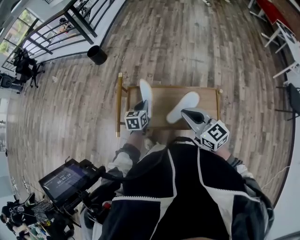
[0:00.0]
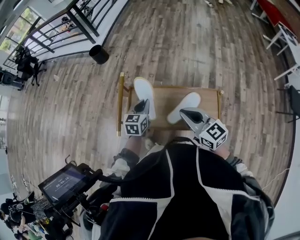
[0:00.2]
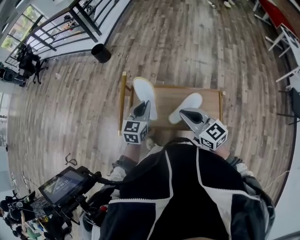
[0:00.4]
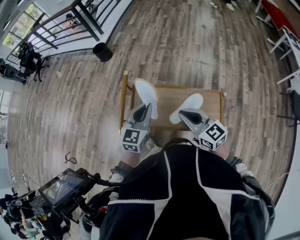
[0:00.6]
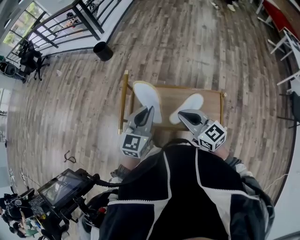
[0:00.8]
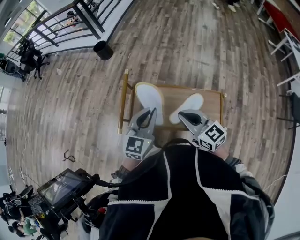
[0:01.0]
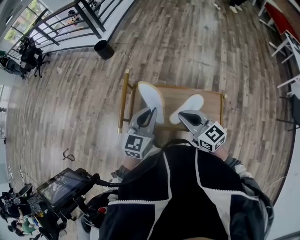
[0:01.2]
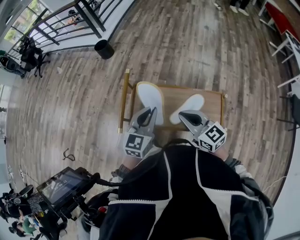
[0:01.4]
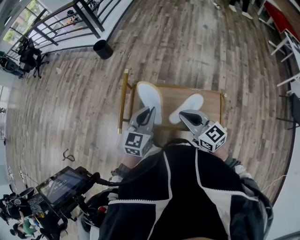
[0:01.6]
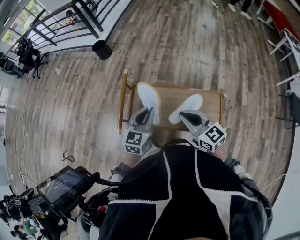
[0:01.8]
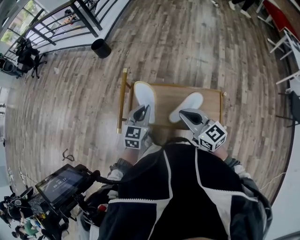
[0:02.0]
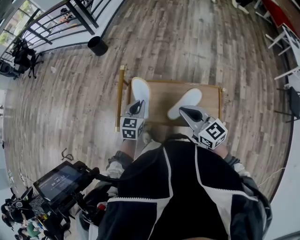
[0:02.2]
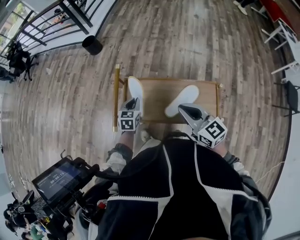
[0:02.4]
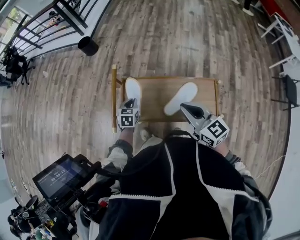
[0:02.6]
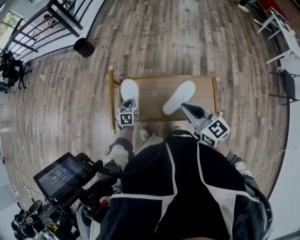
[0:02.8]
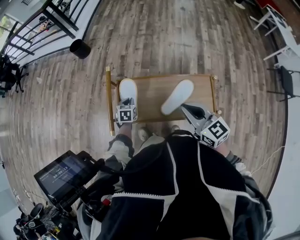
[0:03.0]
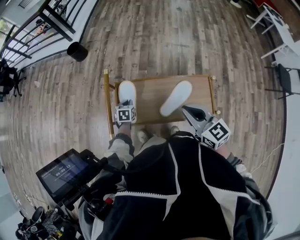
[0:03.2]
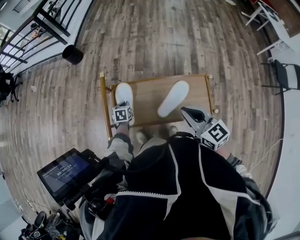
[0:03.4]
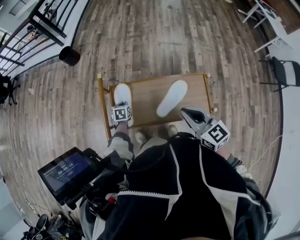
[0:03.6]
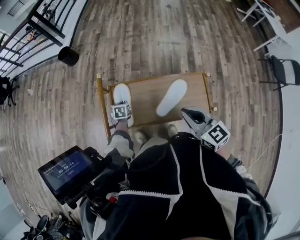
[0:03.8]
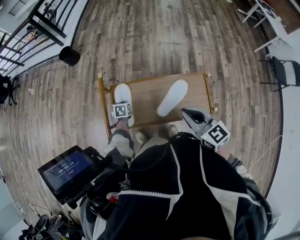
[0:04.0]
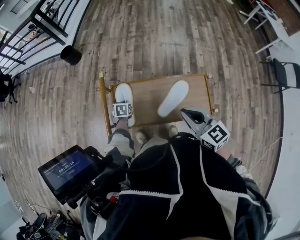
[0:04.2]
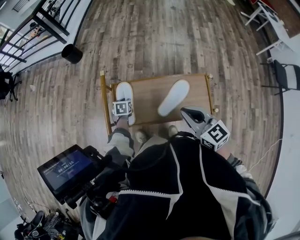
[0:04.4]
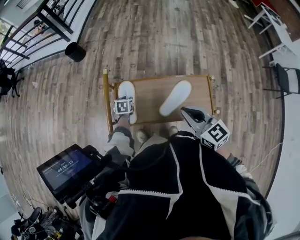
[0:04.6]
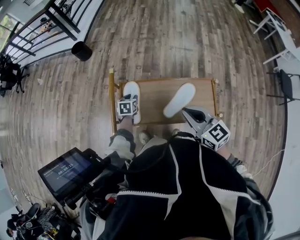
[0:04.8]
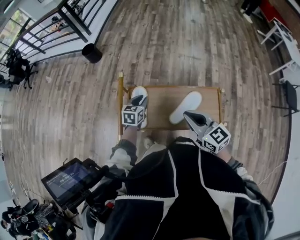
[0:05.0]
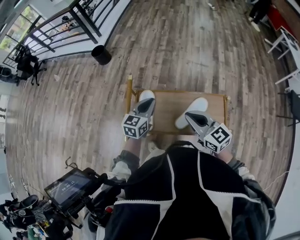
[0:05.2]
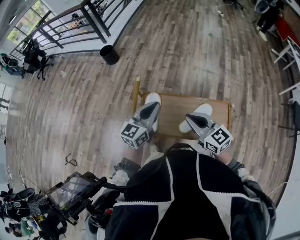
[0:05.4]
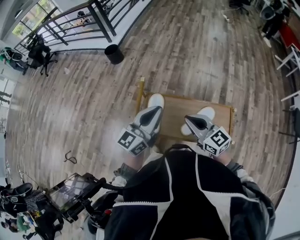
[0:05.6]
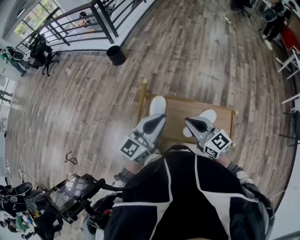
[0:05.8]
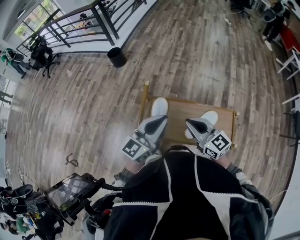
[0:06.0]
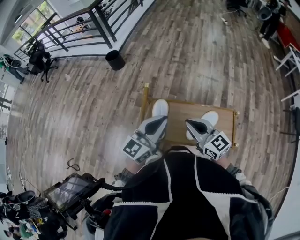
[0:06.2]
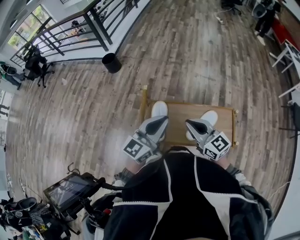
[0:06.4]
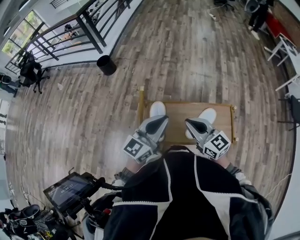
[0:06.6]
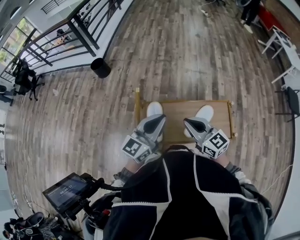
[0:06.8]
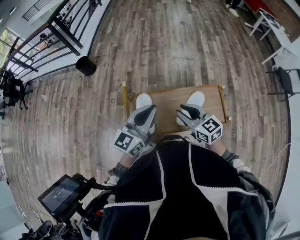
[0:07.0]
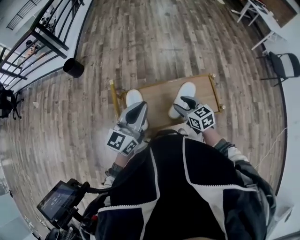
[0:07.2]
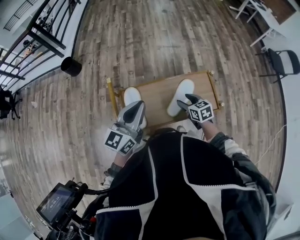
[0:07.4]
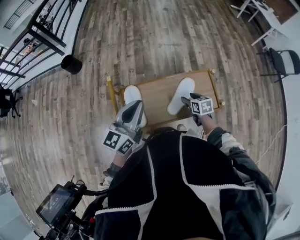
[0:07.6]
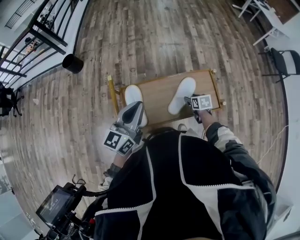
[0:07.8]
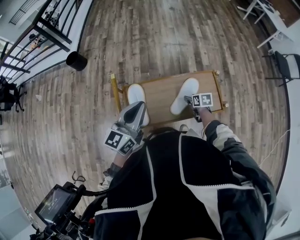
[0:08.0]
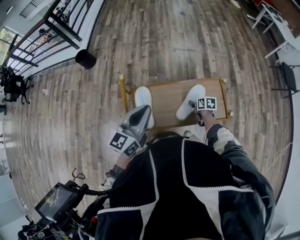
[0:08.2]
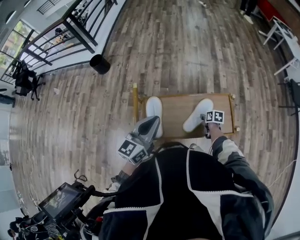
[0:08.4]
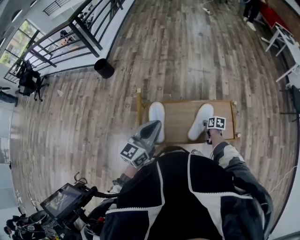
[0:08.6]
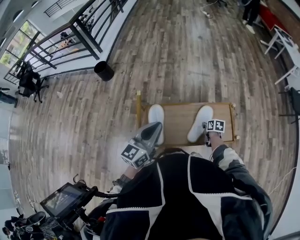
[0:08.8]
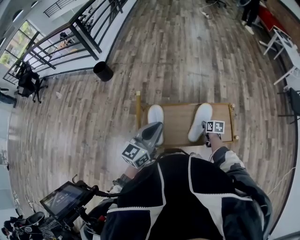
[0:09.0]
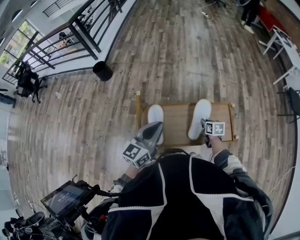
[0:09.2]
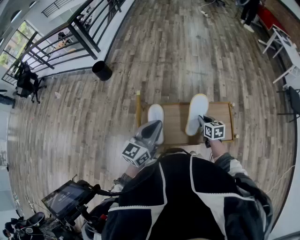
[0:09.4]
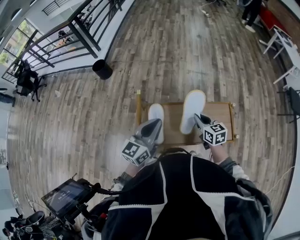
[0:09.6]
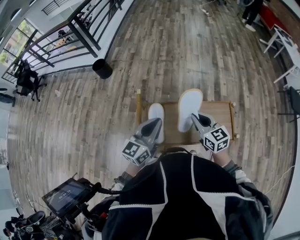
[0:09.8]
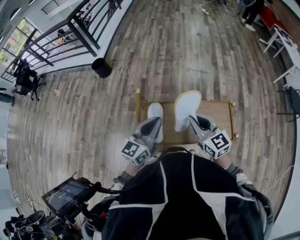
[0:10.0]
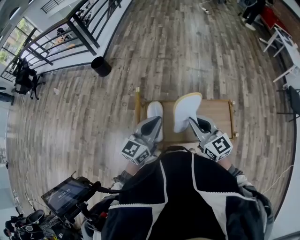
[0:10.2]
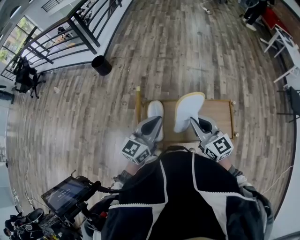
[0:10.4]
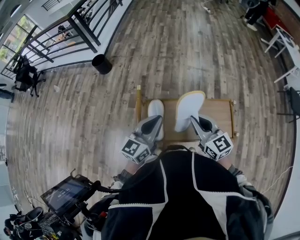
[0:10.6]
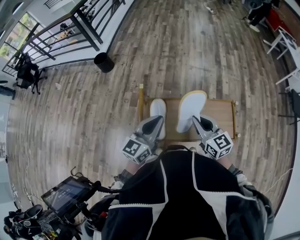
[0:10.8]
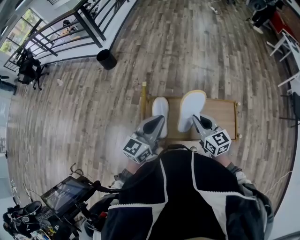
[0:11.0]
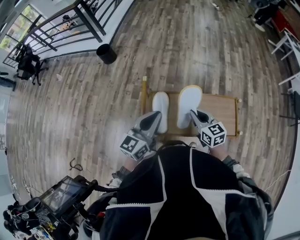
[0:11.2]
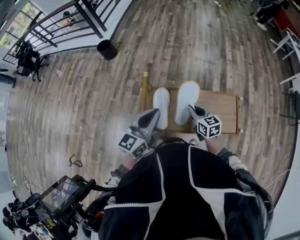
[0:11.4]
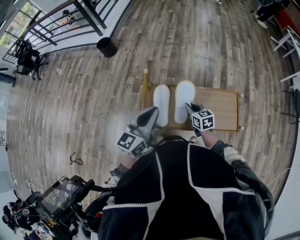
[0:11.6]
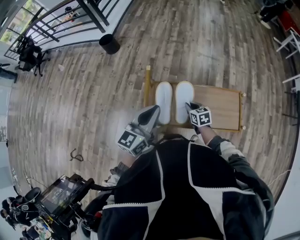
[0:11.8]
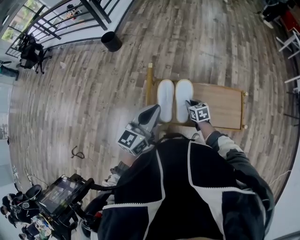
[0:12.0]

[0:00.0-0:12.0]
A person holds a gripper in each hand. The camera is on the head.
0:00.0 to 0:01.6: The left gripper heads upward and backward, covering about 15 cm, and changes its angle by roughly 30 degrees.
0:01.6 to 0:03.0: The left gripper moves downward and forward, approximately 30 cm, and tips its fingers downward by roughly 40 degrees. The right gripper shifts by roughly 5 cm.
0:03.0 to 0:04.4: The left gripper opens up.
0:04.4 to 0:06.0: The left gripper is displaced upward by roughly 40 cm, points its fingers some 70 degrees further upward, and closes up. The right gripper shifts some 10 cm to the left and forward.
0:06.0 to 0:07.6: The right gripper shifts about 30 cm downward and to the right, tips its fingers downward by about 40 degrees, and opens up. Meanwhile the left gripper changes place by some 5 cm.
0:07.6 to 0:09.0: The right gripper travels downward by roughly 5 cm, and closes.
0:09.0 to 0:10.4: The right gripper is displaced upward and to the left by some 35 cm, and tilts its fingers some 40 degrees upward.
0:10.4 to 0:12.0: The right gripper is displaced downward by roughly 30 cm, and angles its fingers downward, by roughly 40 degrees, while the left gripper travels to the left by about 5 cm.

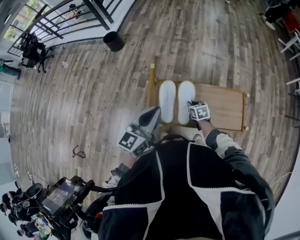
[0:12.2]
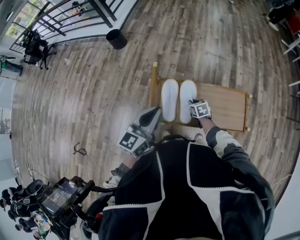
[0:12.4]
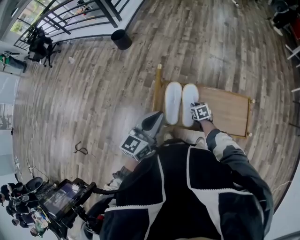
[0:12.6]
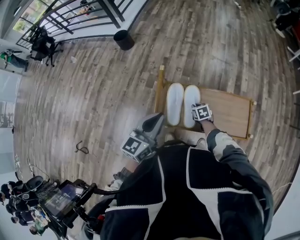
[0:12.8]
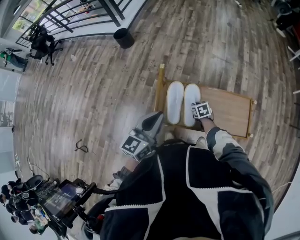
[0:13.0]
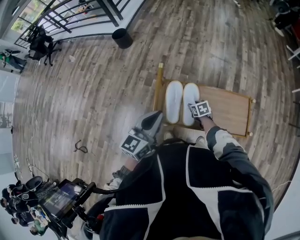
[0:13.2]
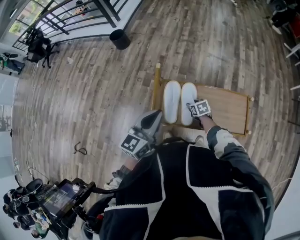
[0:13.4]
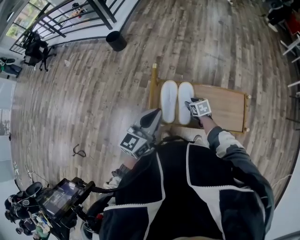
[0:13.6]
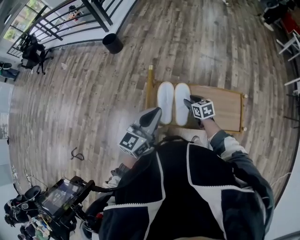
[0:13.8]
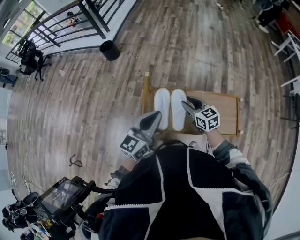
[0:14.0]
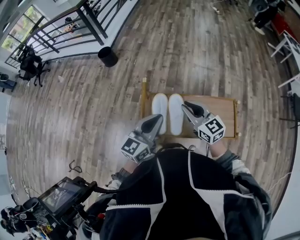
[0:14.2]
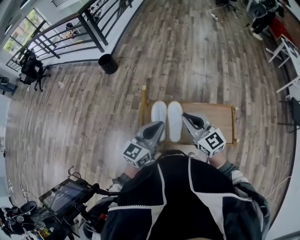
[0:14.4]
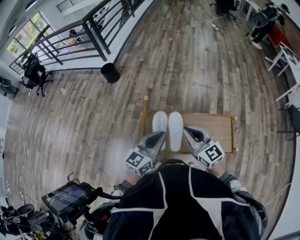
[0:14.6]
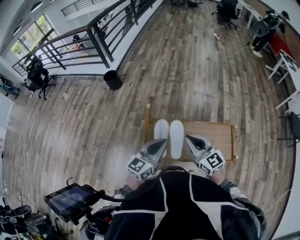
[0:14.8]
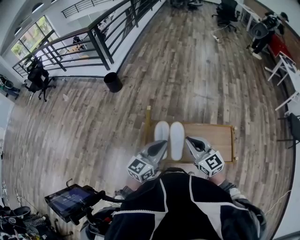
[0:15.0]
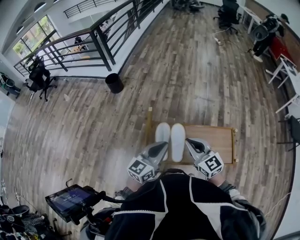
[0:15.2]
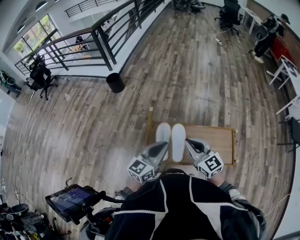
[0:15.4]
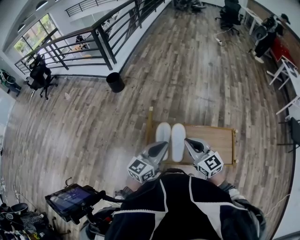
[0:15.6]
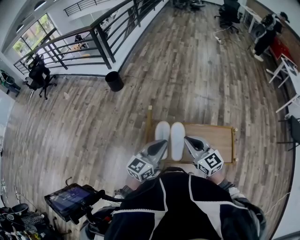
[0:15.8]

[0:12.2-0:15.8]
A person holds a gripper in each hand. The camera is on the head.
0:12.2 to 0:14.0: The right gripper is displaced upward by about 15 cm, changes its angle by roughly 30 degrees, and opens its fingers.
0:14.0 to 0:15.8: The right gripper shifts about 15 cm upward and backward, changes its angle by some 20 degrees, and closes.

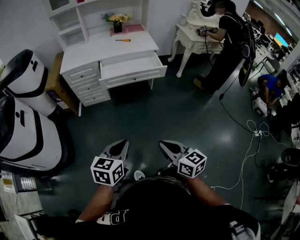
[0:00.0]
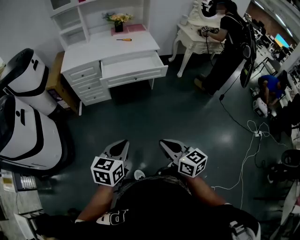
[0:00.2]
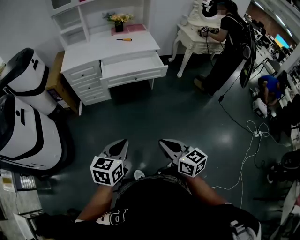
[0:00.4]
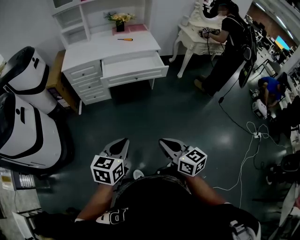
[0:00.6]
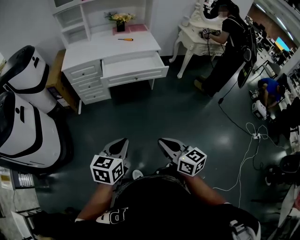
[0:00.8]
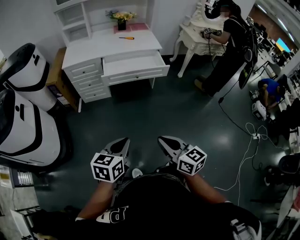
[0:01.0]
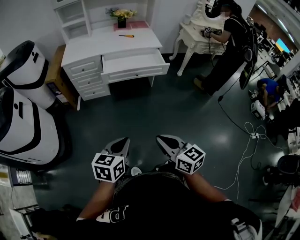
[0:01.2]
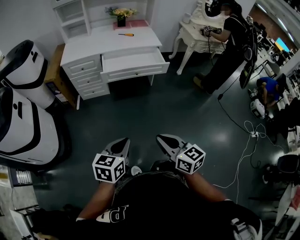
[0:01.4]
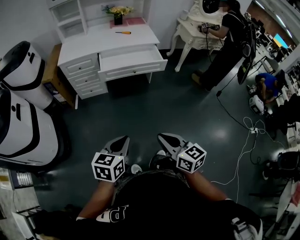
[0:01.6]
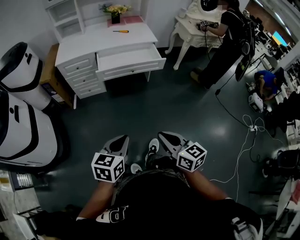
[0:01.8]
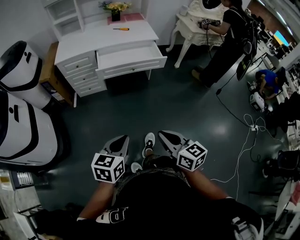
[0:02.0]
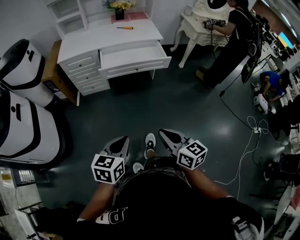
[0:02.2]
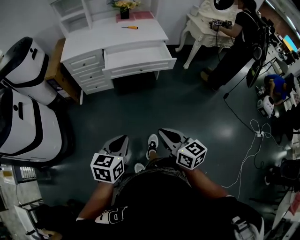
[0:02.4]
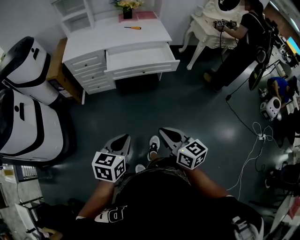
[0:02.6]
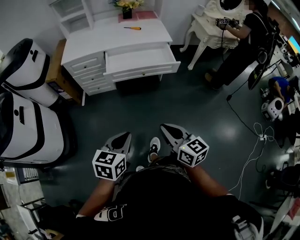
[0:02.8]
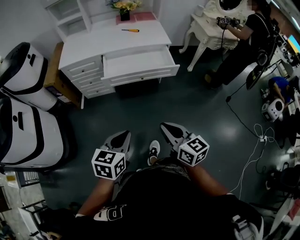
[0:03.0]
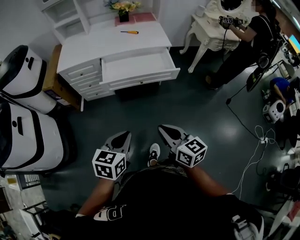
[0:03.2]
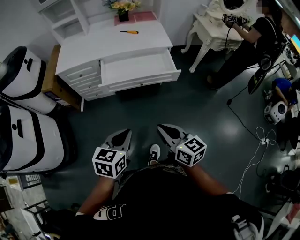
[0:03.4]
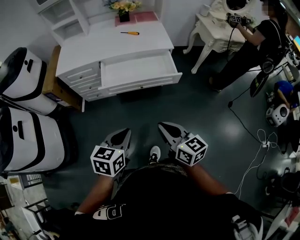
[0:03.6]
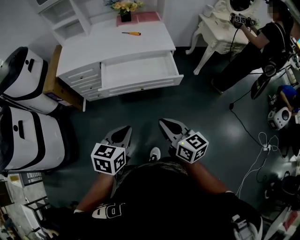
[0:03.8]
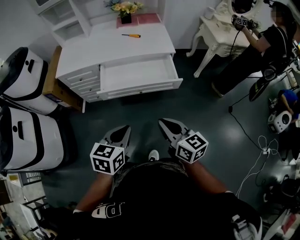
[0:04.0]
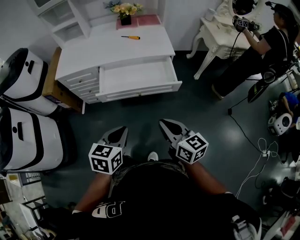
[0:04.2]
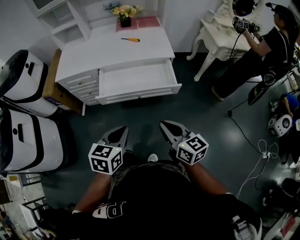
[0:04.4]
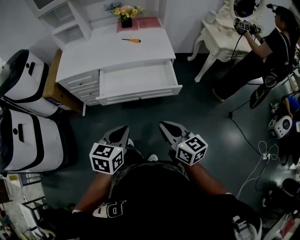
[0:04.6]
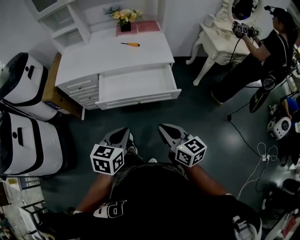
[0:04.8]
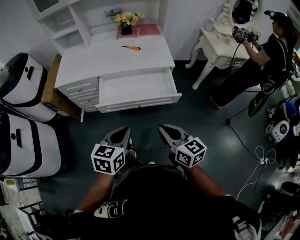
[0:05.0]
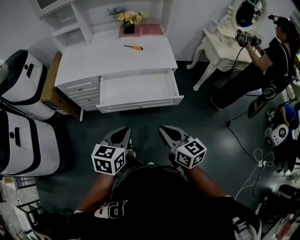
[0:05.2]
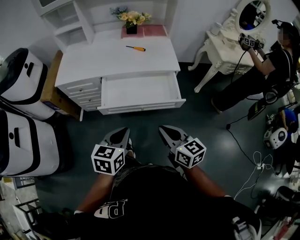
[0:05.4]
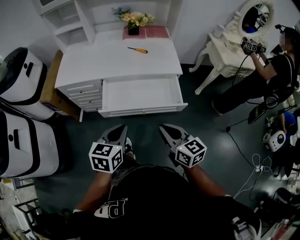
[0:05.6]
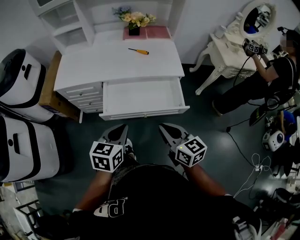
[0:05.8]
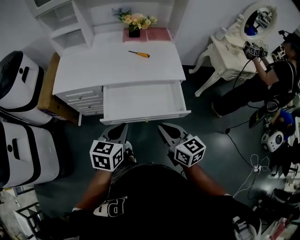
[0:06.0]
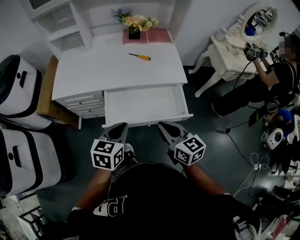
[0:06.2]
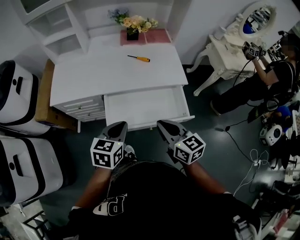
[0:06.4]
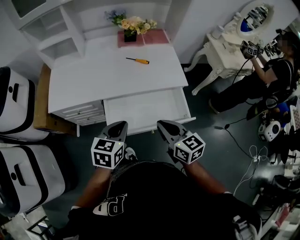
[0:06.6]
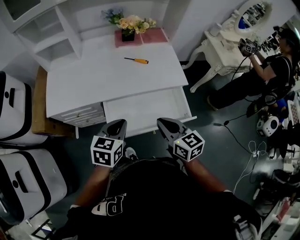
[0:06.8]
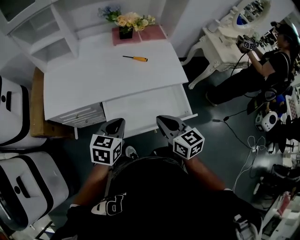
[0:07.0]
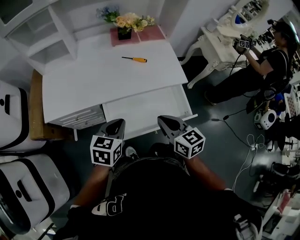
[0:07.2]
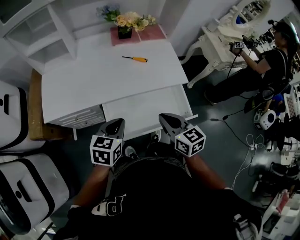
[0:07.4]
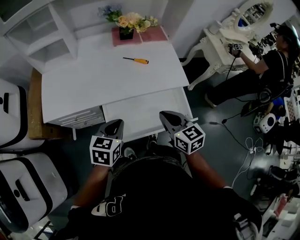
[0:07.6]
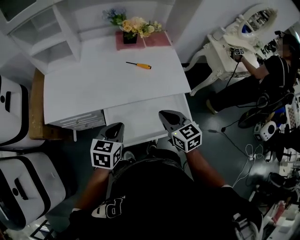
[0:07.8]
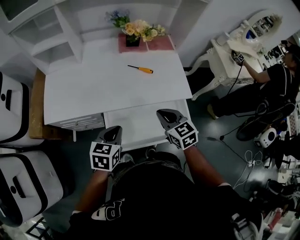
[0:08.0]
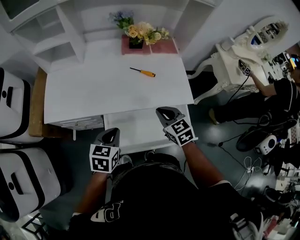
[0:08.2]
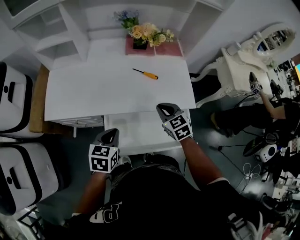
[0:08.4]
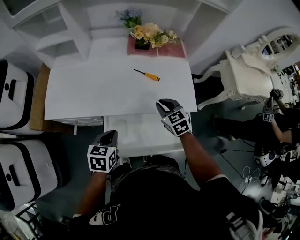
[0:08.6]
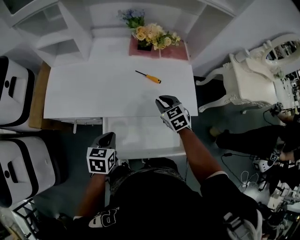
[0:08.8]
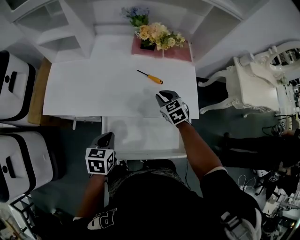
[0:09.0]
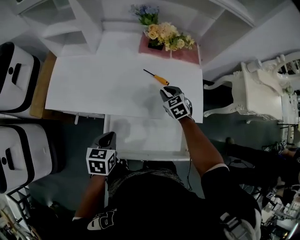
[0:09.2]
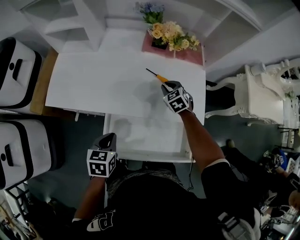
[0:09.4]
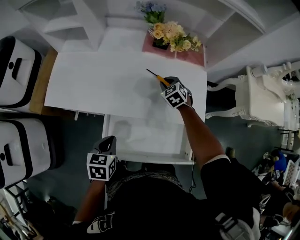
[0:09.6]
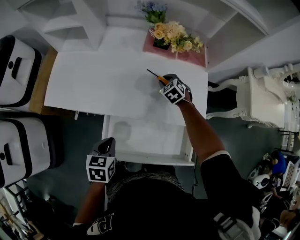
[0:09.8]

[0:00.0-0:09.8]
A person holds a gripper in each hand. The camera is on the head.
0:00.0 to 0:01.4: The grippers stay close to where they were, moving slightly.
0:01.4 to 0:02.8: Both grippers move forward, about 15 cm.
0:02.8 to 0:04.2: Both grippers move forward, approximately 20 cm.
0:04.2 to 0:05.6: Both grippers move forward, roughly 15 cm.
0:05.6 to 0:07.0: Both grippers move forward and to the left, some 25 cm.
0:07.0 to 0:08.4: The right gripper moves forward, some 20 cm, and changes its angle by some 30 degrees; the left gripper shifts approximately 5 cm forward.
0:08.4 to 0:09.8: The right gripper travels forward and downward by roughly 25 cm, and swivels some 30 degrees.
